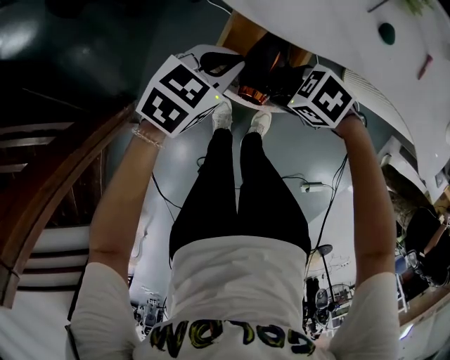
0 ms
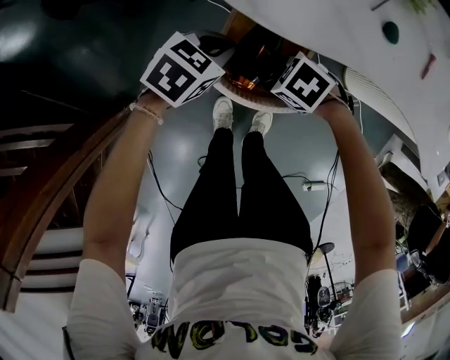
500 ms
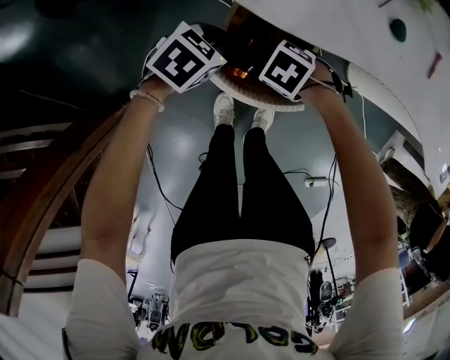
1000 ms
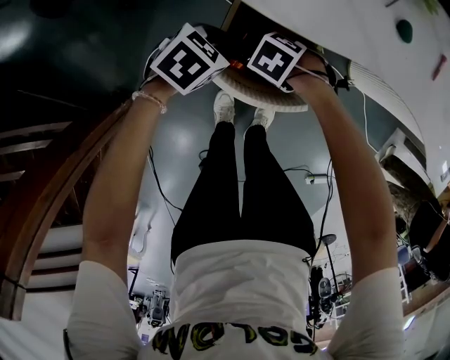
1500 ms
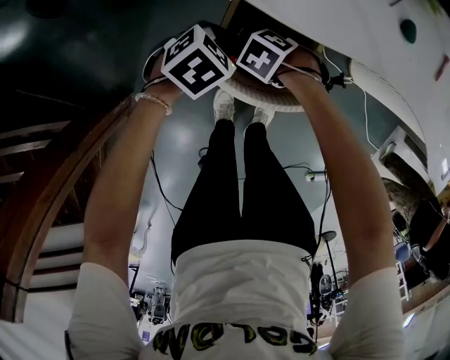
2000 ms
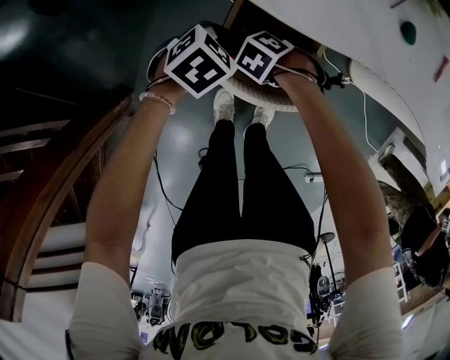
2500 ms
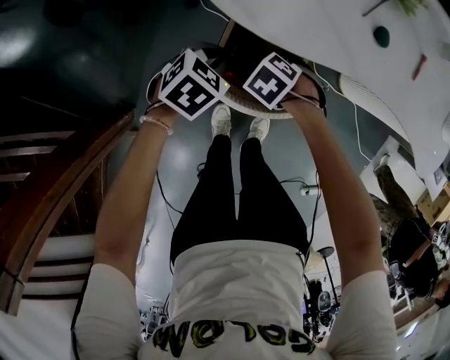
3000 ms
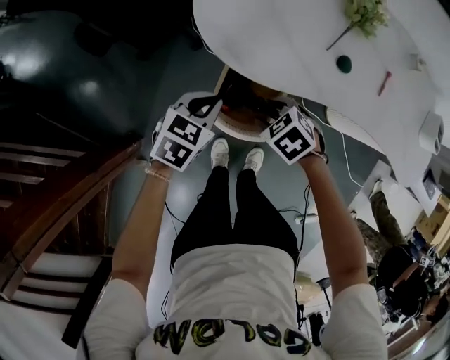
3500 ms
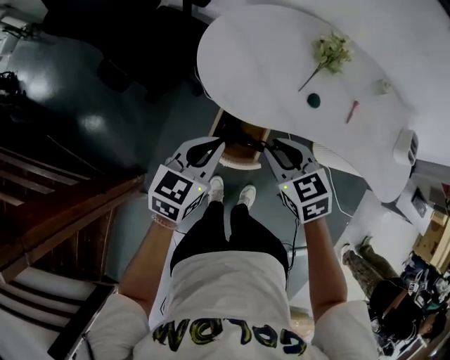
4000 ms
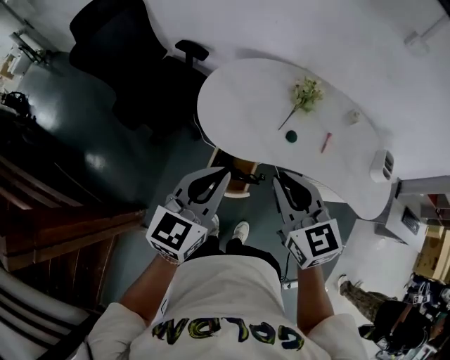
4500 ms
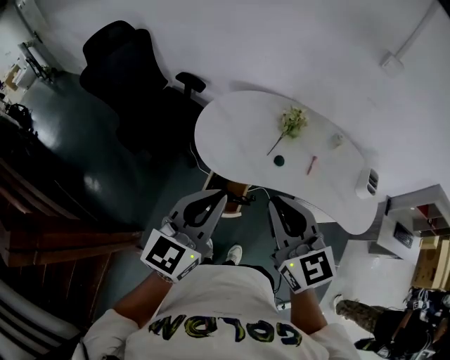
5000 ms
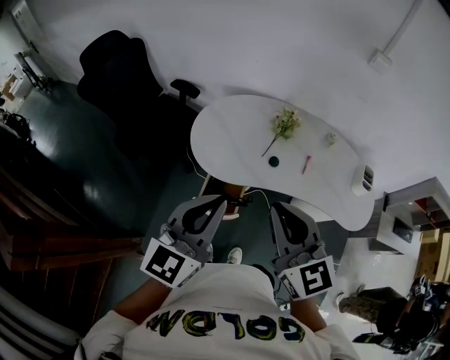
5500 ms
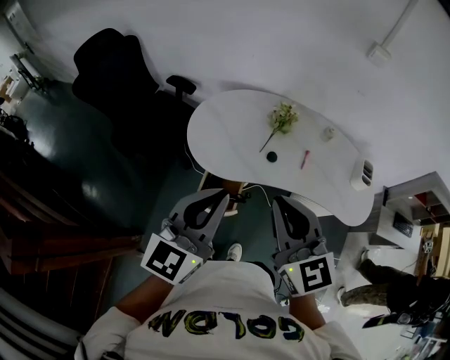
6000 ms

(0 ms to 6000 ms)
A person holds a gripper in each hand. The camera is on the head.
0 ms - 2000 ms: The two grippers go about 15 cm downward. The right gripper rotates some 30 degrees. Meanwhile the left gripper turns by roughly 20 degrees.
2000 ms - 4000 ms: The grippers both shift upward by roughly 40 cm. The left gripper points its fingers approximately 40 degrees further upward; the right gripper tips its fingers upward by roughly 40 degrees, and closes its fingers.
4000 ms - 6000 ms: Both grippers move upward, some 30 cm. The left gripper tilts its fingers approximately 30 degrees upward. The right gripper angles its fingers upward, by some 30 degrees.

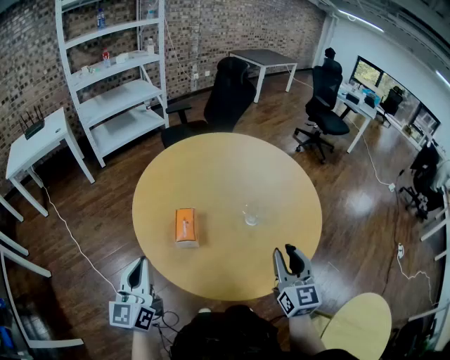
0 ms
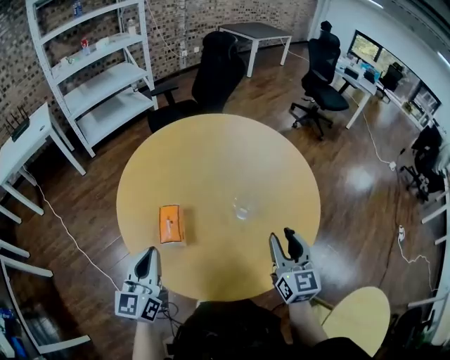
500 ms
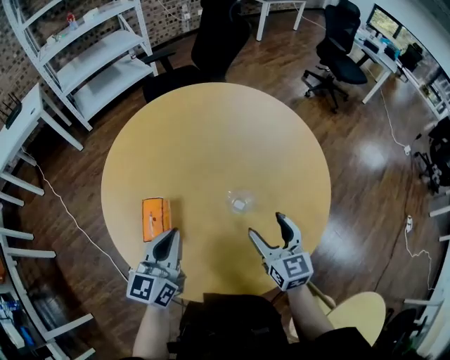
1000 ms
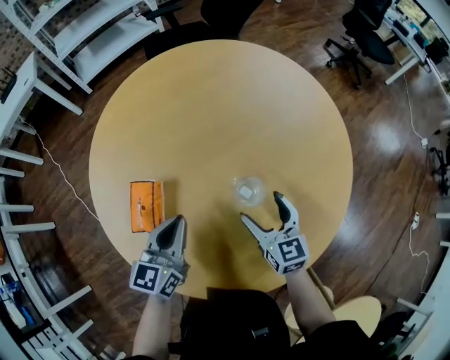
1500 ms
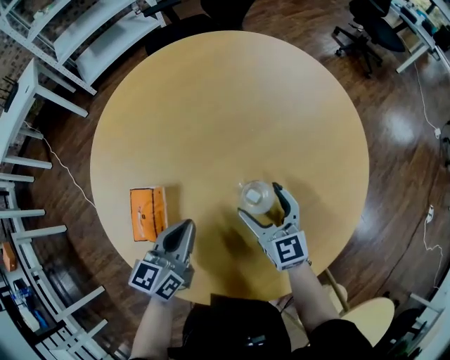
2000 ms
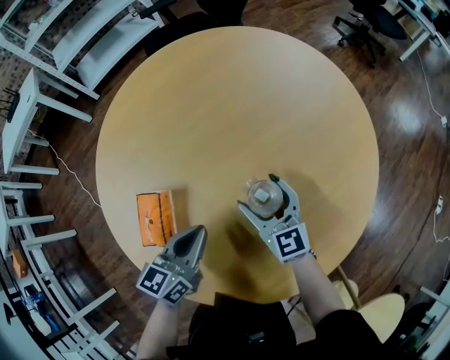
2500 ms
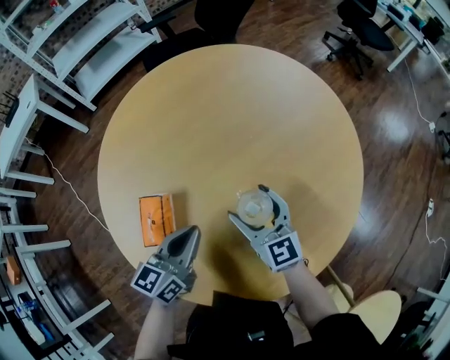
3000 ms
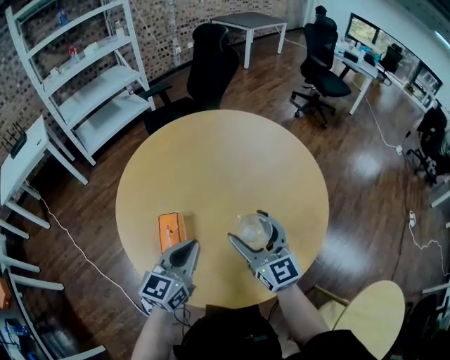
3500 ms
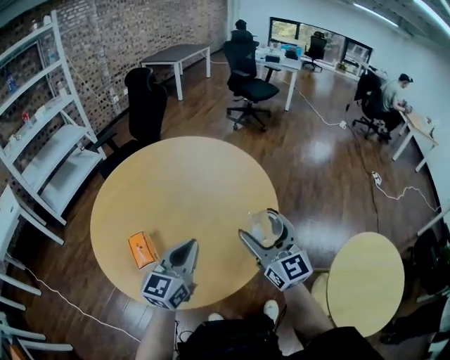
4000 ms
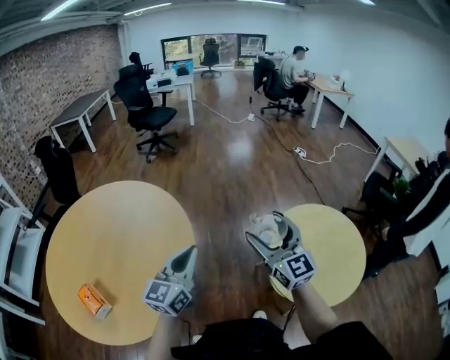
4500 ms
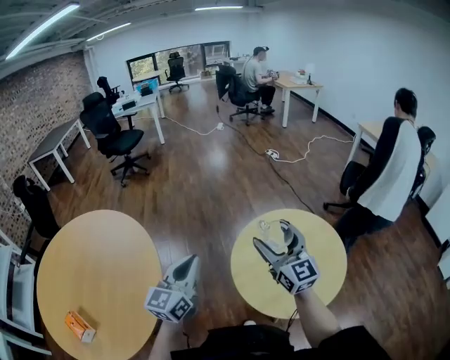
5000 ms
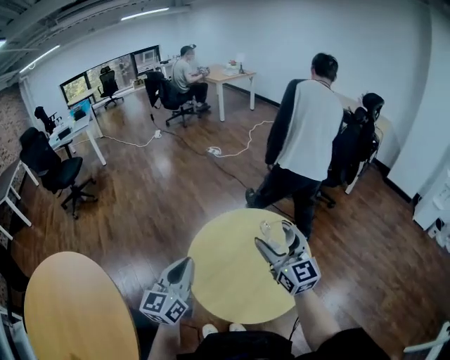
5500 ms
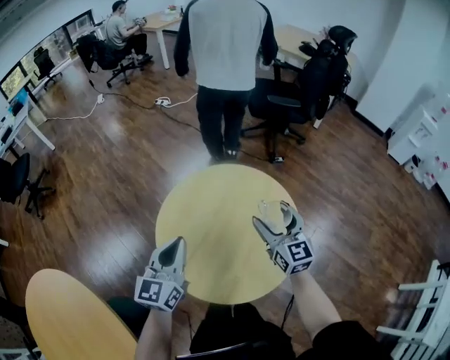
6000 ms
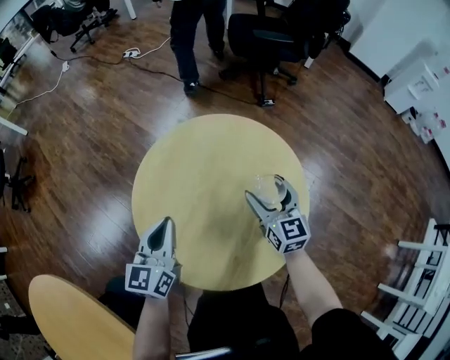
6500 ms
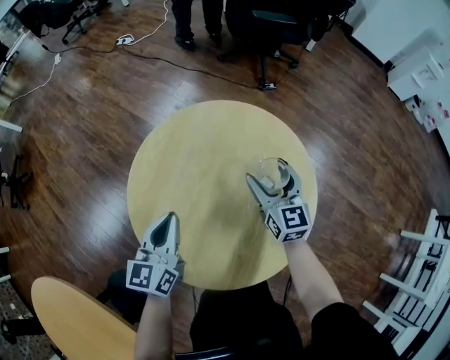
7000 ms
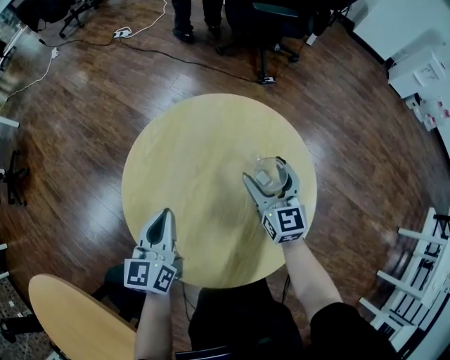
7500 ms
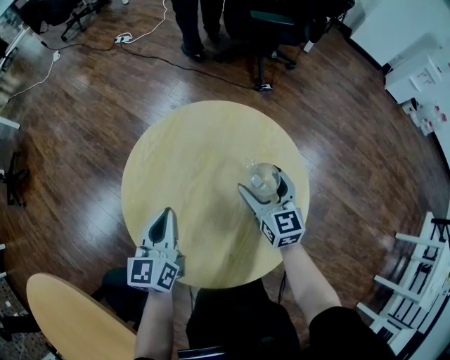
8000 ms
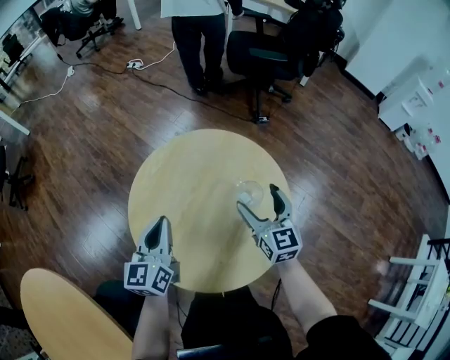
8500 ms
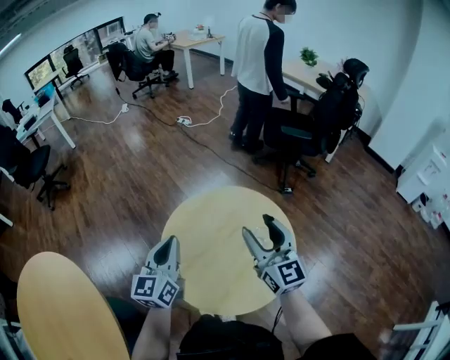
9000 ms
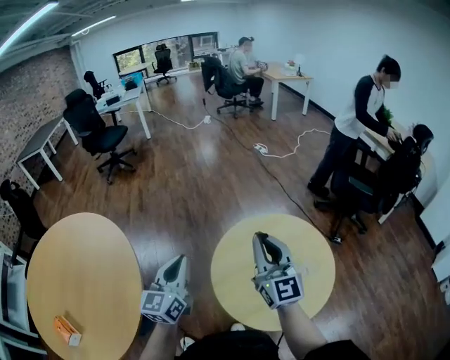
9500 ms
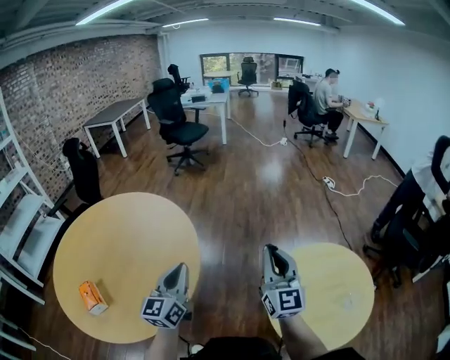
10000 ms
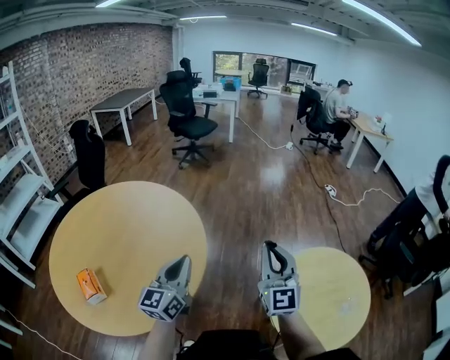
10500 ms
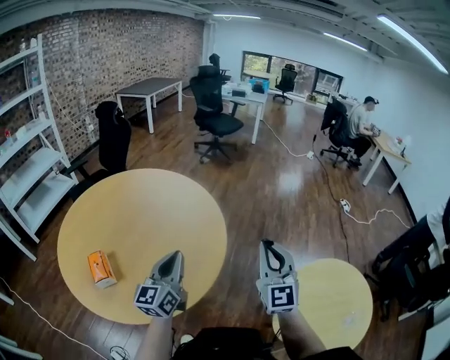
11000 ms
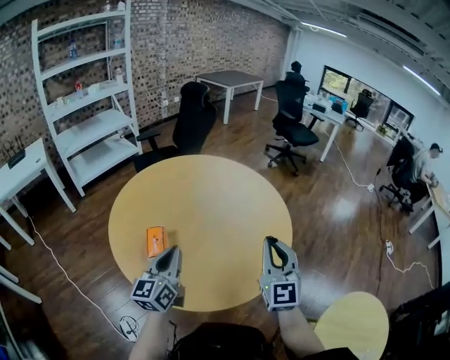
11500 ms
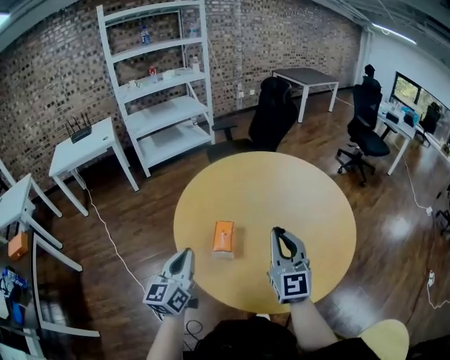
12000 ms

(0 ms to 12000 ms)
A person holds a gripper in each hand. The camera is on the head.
0 ms - 2000 ms: The right gripper moves downward and forward, roughly 30 cm, changes its angle by some 30 degrees, and opens. Meanwhile the left gripper shifts roughly 35 cm to the right, forward and downward, and rotates roughly 30 degrees.
2000 ms - 4000 ms: Both grippers move upward, approximately 20 cm. The left gripper changes its angle by about 40 degrees. Meanwhile the right gripper rotates roughly 40 degrees.
4000 ms - 6000 ms: Both grippers are carried roughly 70 cm. The right gripper swivels about 80 degrees; the left gripper rotates roughly 70 degrees.
6000 ms - 8000 ms: The right gripper moves downward, about 15 cm; the left gripper travels downward and forward by approximately 15 cm.
8000 ms - 10000 ms: The two grippers travel together, about 50 cm. The right gripper angles its fingers upward, by about 40 degrees, and closes its fingers, while the left gripper changes its angle by roughly 60 degrees.
10000 ms - 12000 ms: The two grippers travel together, about 50 cm. The left gripper changes its angle by some 50 degrees; the right gripper turns by some 50 degrees.

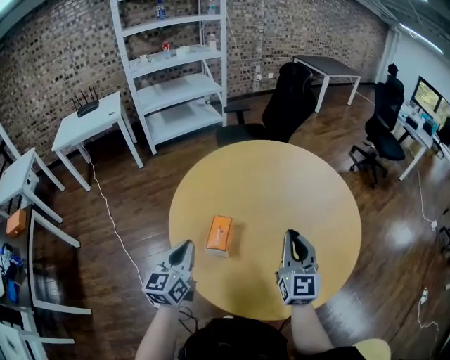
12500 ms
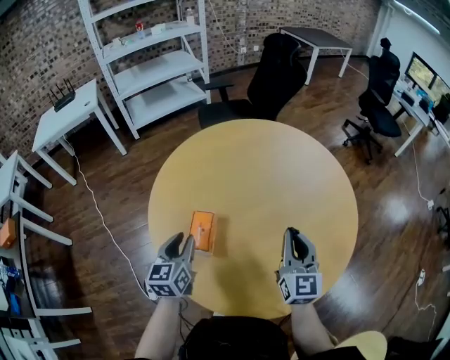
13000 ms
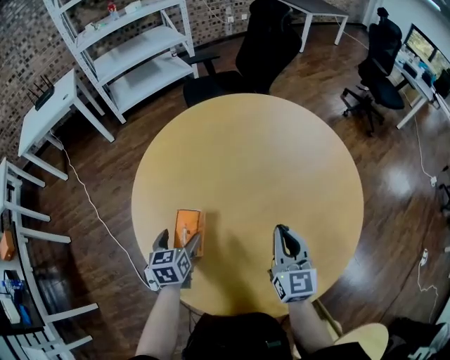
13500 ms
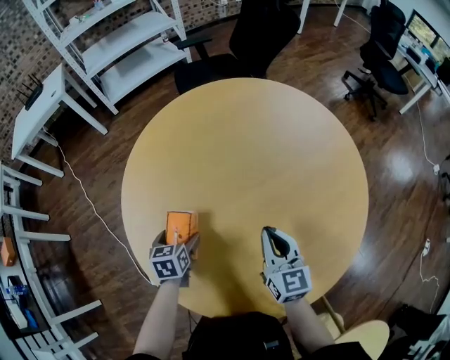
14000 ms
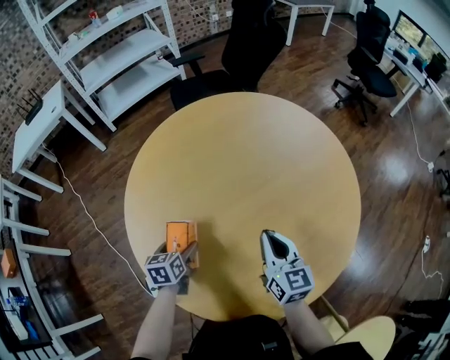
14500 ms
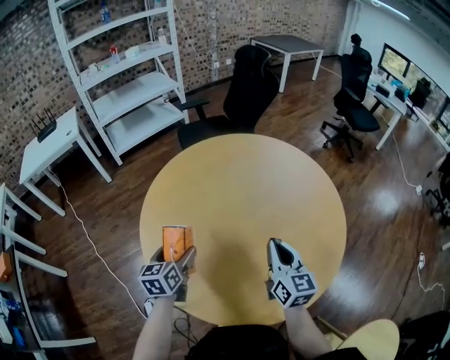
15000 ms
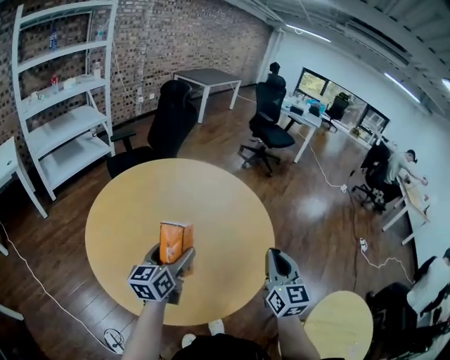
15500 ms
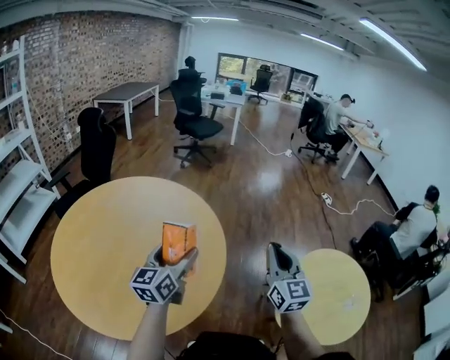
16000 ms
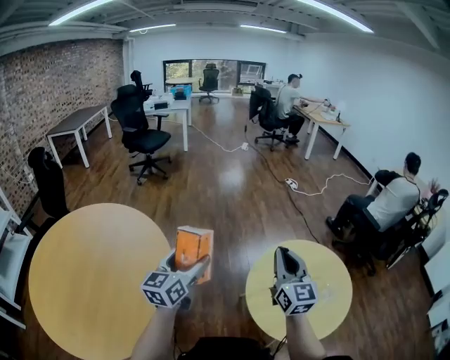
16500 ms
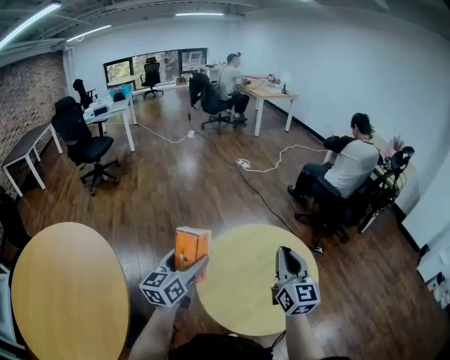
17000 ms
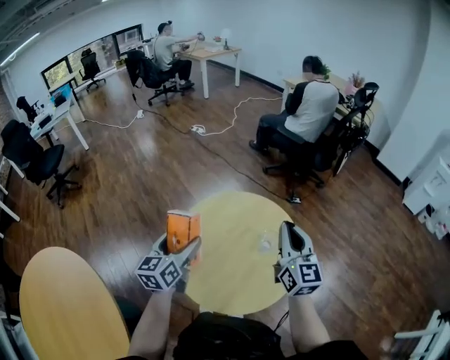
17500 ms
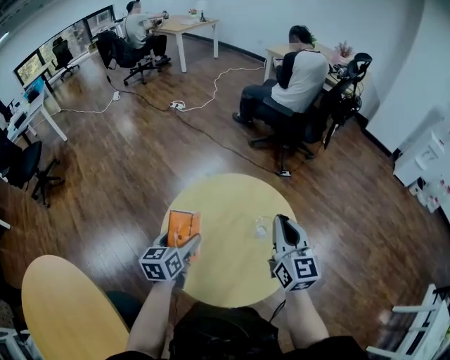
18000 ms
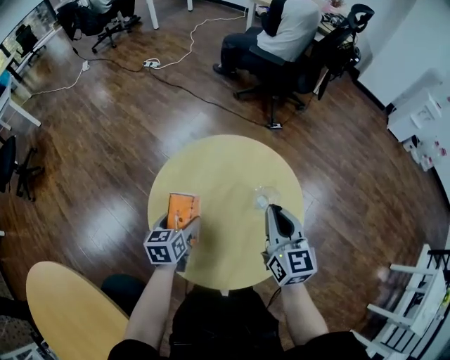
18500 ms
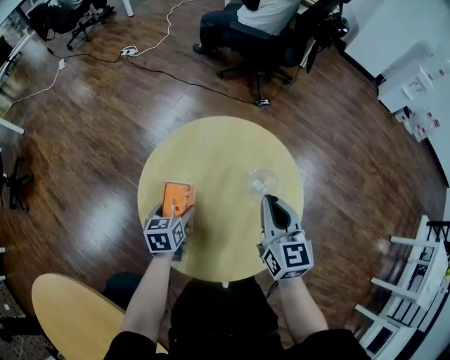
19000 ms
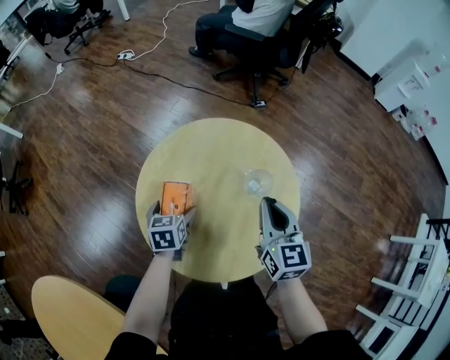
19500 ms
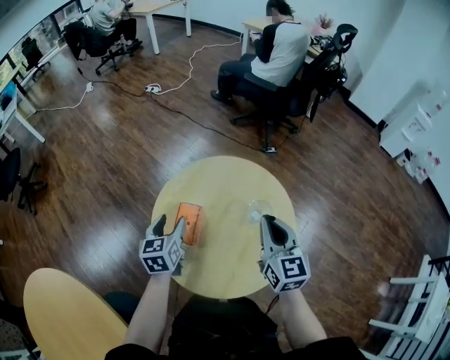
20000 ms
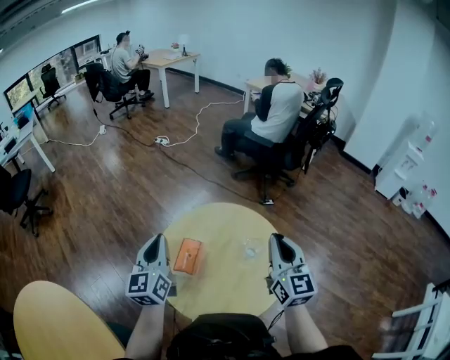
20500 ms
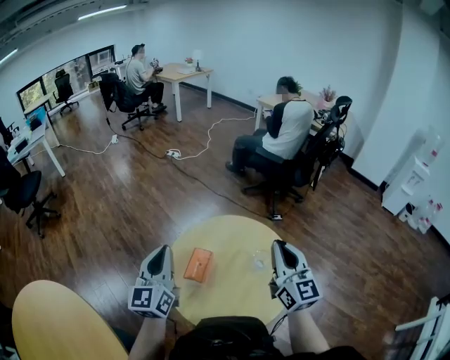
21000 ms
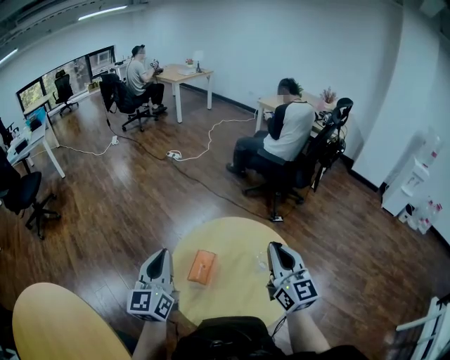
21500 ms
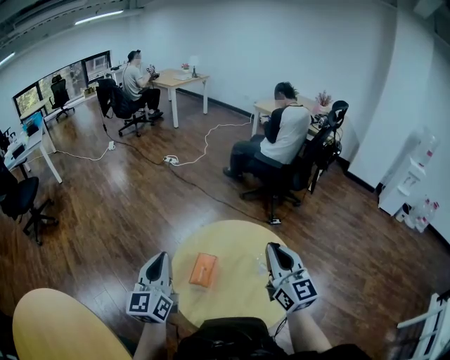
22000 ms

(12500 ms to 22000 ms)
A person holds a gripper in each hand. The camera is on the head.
12500 ms - 14500 ms: The left gripper shifts approximately 25 cm downward and forward, angles its fingers downward, by approximately 40 degrees, and opens, while the right gripper travels downward and forward by approximately 15 cm, and rotates about 30 degrees.
14500 ms - 16500 ms: The two grippers travel together, about 60 cm. The right gripper turns by about 70 degrees. The left gripper tips its fingers upward by approximately 40 degrees.
16500 ms - 18000 ms: The right gripper moves some 40 cm, and changes its angle by approximately 40 degrees. Meanwhile the left gripper ends up about 40 cm from where it was, and swivels some 40 degrees.
18000 ms - 20000 ms: The left gripper travels downward and back again, about 15 cm each way.
20000 ms - 22000 ms: The left gripper moves upward and to the left, about 20 cm, angles its fingers upward, by approximately 30 degrees, and closes up, while the right gripper moves upward, some 10 cm, and rotates about 20 degrees.
